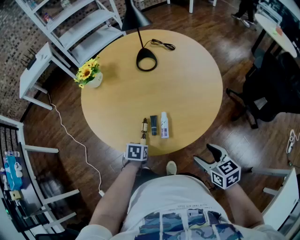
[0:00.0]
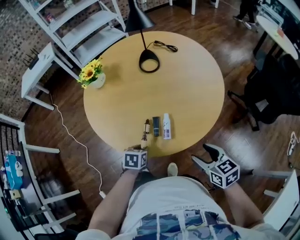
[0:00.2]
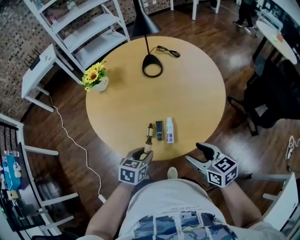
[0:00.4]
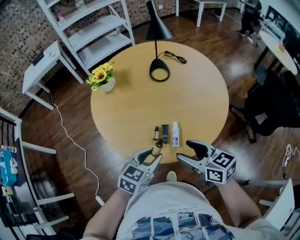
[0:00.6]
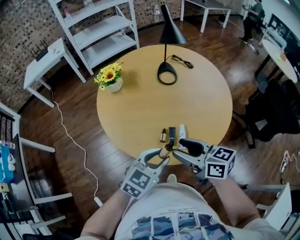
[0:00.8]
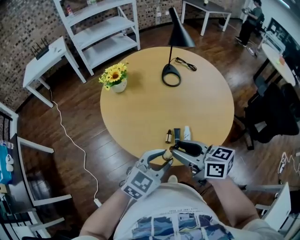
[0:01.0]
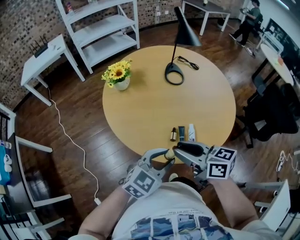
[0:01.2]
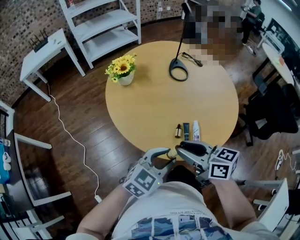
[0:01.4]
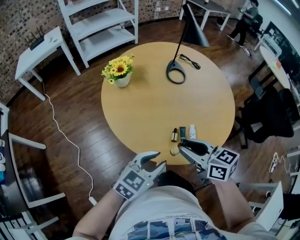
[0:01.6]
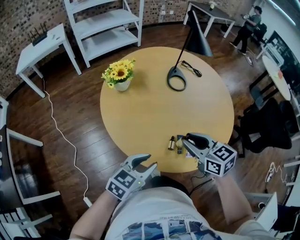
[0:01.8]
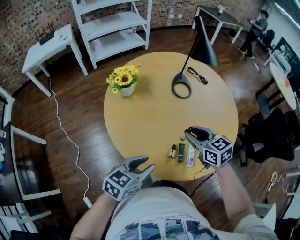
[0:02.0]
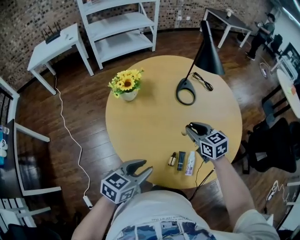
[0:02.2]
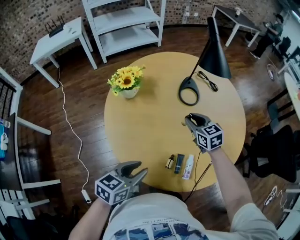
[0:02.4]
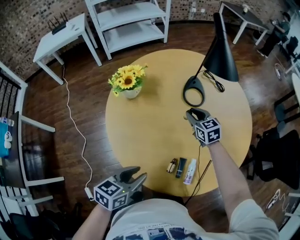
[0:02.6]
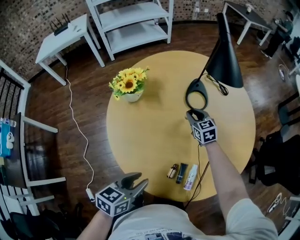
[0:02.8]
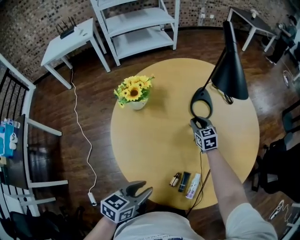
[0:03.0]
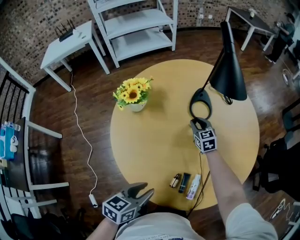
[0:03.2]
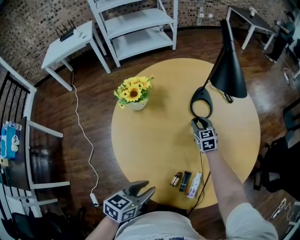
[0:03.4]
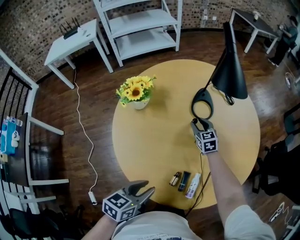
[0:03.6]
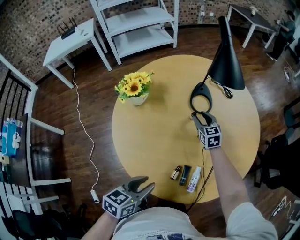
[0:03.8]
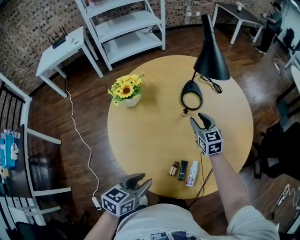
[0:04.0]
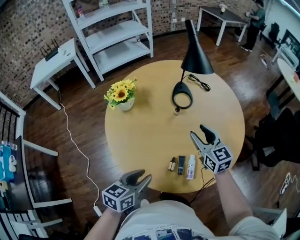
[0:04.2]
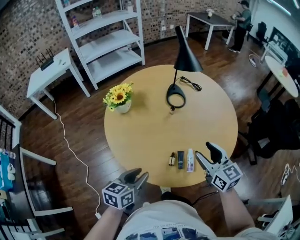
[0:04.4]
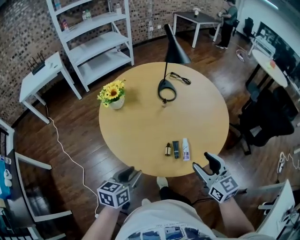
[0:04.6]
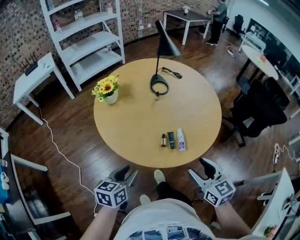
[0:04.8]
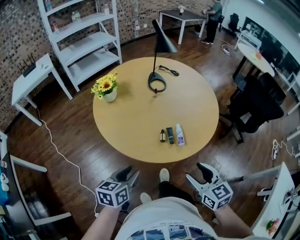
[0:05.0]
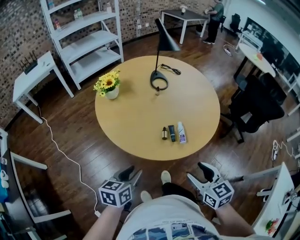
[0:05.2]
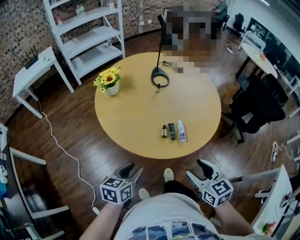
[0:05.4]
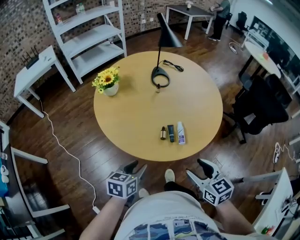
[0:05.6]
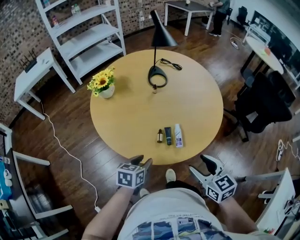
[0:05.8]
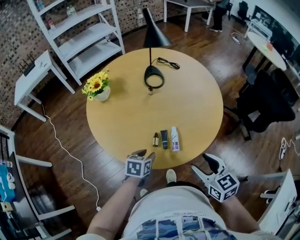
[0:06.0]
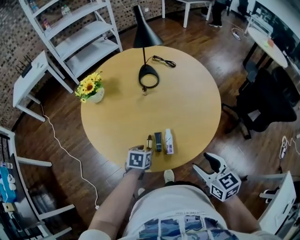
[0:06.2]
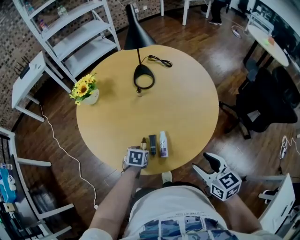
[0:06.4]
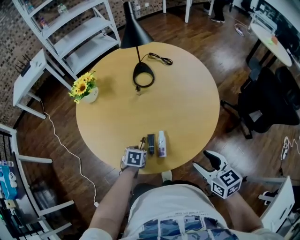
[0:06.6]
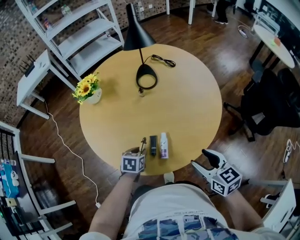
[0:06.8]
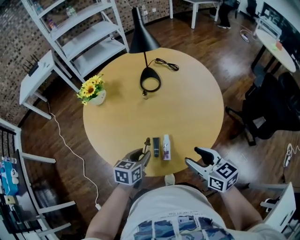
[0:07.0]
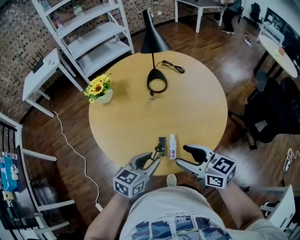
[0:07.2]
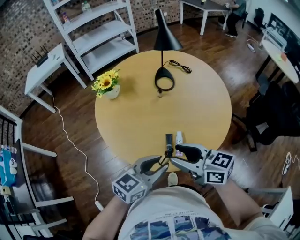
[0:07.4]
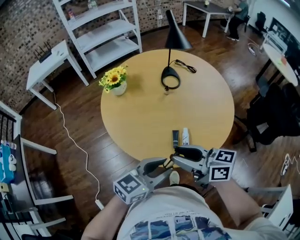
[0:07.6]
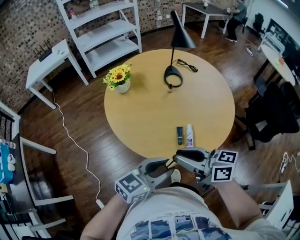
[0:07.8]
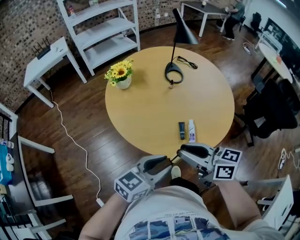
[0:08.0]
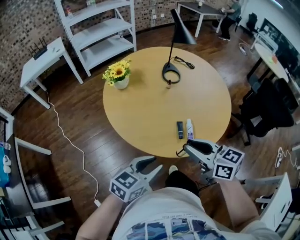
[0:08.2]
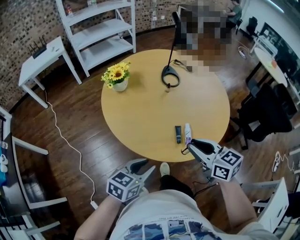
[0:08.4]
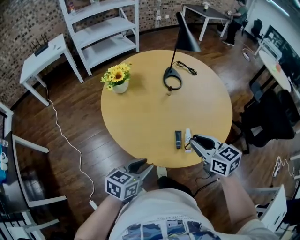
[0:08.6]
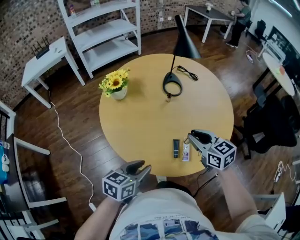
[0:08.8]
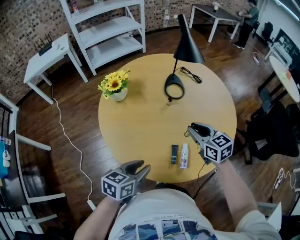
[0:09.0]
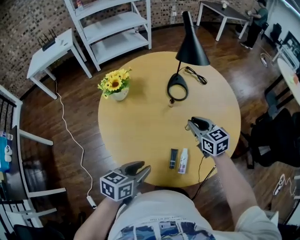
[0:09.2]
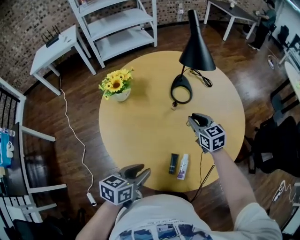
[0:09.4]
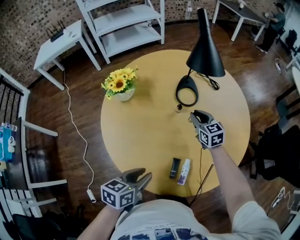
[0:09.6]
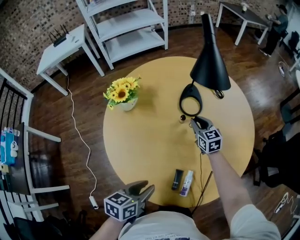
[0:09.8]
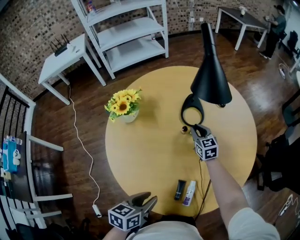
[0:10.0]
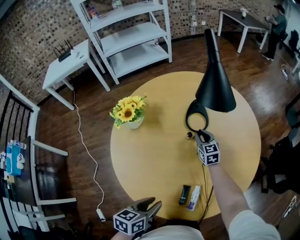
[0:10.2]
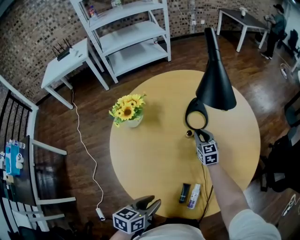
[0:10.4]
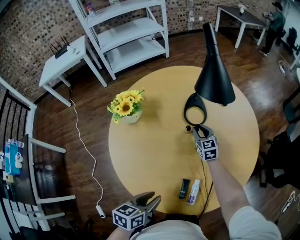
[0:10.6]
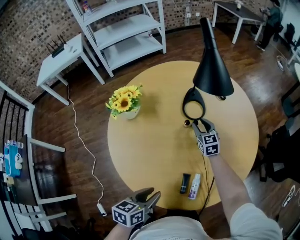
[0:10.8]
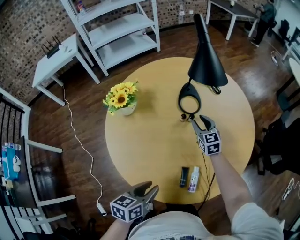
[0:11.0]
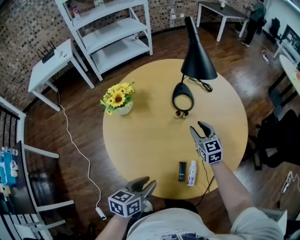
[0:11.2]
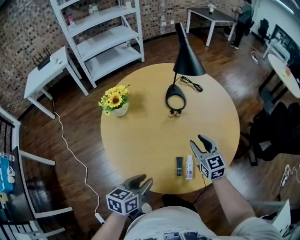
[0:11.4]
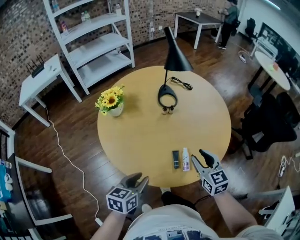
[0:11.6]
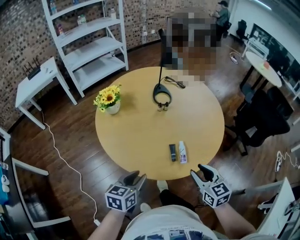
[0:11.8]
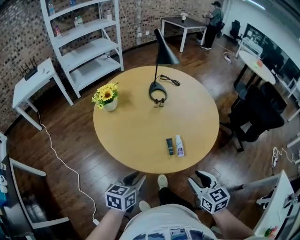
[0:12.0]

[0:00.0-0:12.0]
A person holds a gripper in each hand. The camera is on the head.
0:00.0 to 0:01.6: The right gripper goes roughly 30 cm to the left, rotates roughly 20 degrees, and closes its fingers. Meanwhile the left gripper goes roughly 25 cm upward and to the left, and angles its fingers upward, by some 40 degrees.
0:01.6 to 0:03.0: The right gripper heads forward and downward, covering about 50 cm, and swivels some 30 degrees. Meanwhile the left gripper is displaced forward and downward by roughly 15 cm, and swivels about 40 degrees.
0:03.0 to 0:04.4: The left gripper heads backward, covering some 5 cm; the right gripper is displaced backward and upward by about 40 cm, swivels roughly 20 degrees, and opens its fingers.
0:04.4 to 0:06.0: The left gripper moves downward and to the right, roughly 15 cm, travels backward and back again, some 15 cm each way, and changes its angle by about 20 degrees. The right gripper moves backward and to the right, some 15 cm.
0:06.0 to 0:07.6: The left gripper goes approximately 20 cm upward and backward, and tips its fingers upward by about 40 degrees. Meanwhile the right gripper is displaced to the left and upward by about 15 cm, rotates roughly 50 degrees, and closes.
0:07.6 to 0:09.0: The right gripper goes roughly 25 cm forward, and swivels some 40 degrees. Meanwhile the left gripper moves forward, to the left and downward, roughly 15 cm, and rotates some 30 degrees.
0:09.0 to 0:10.4: The left gripper moves forward, roughly 5 cm, while the right gripper heads forward and downward, covering some 30 cm.
0:10.4 to 0:12.0: The left gripper moves backward, roughly 20 cm, and turns by about 20 degrees, while the right gripper is displaced backward by about 60 cm, and opens.

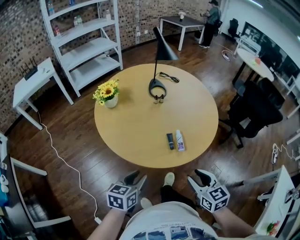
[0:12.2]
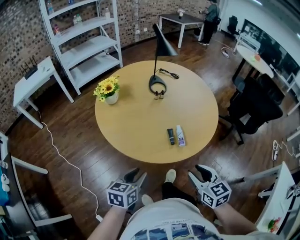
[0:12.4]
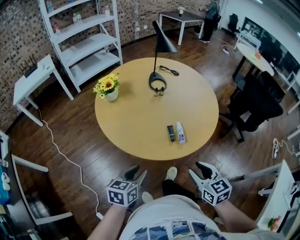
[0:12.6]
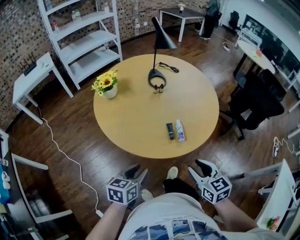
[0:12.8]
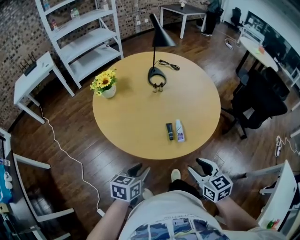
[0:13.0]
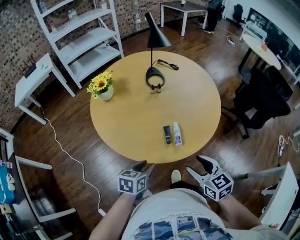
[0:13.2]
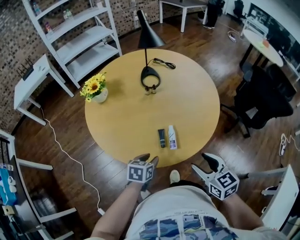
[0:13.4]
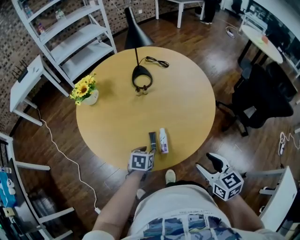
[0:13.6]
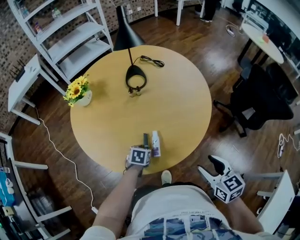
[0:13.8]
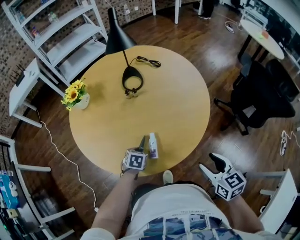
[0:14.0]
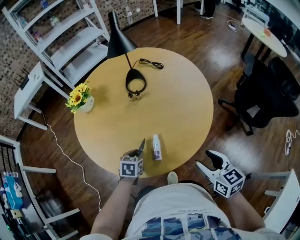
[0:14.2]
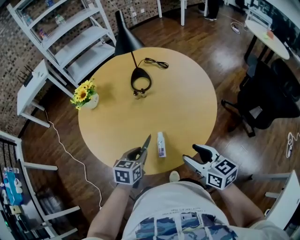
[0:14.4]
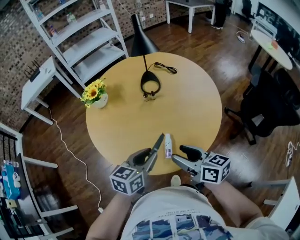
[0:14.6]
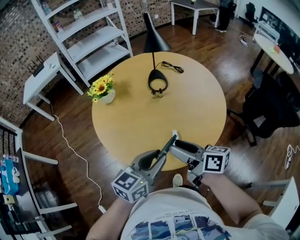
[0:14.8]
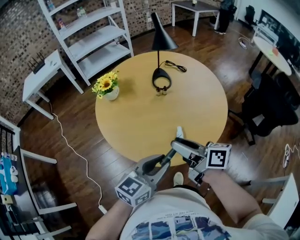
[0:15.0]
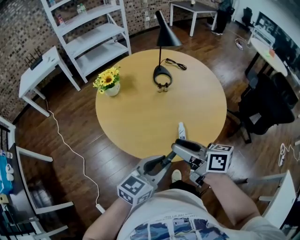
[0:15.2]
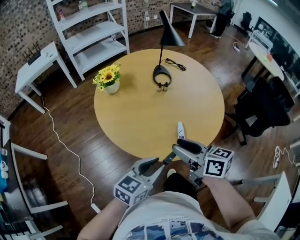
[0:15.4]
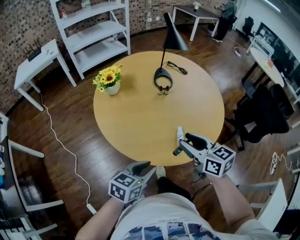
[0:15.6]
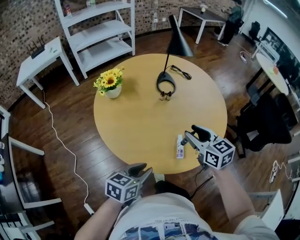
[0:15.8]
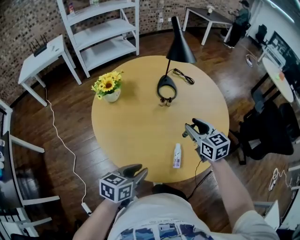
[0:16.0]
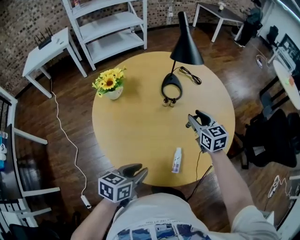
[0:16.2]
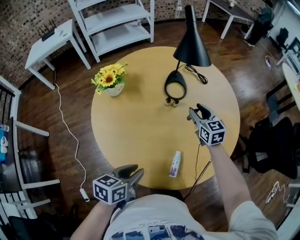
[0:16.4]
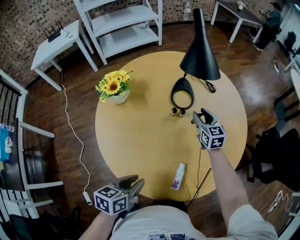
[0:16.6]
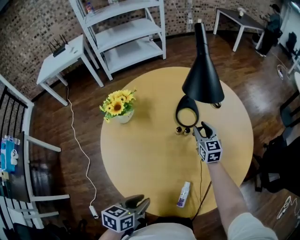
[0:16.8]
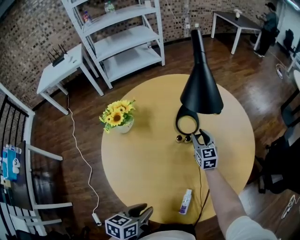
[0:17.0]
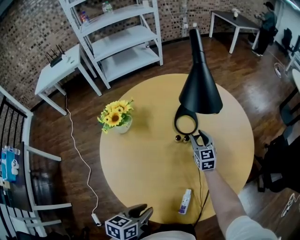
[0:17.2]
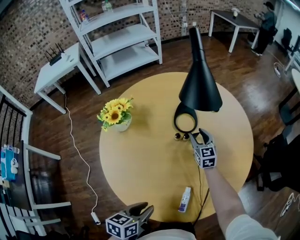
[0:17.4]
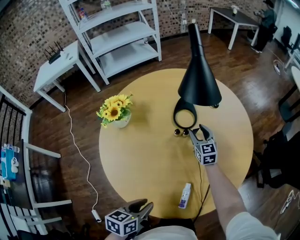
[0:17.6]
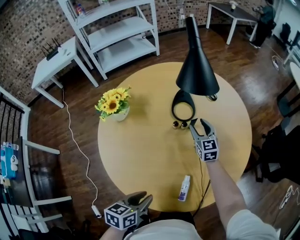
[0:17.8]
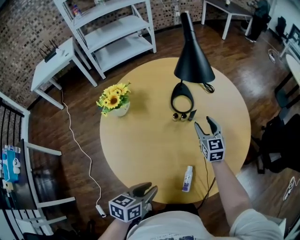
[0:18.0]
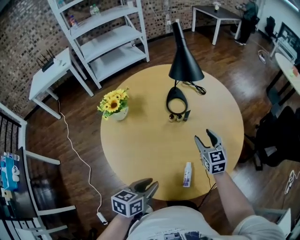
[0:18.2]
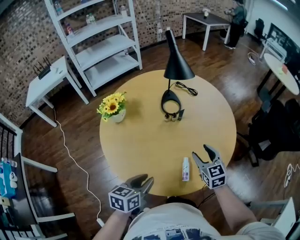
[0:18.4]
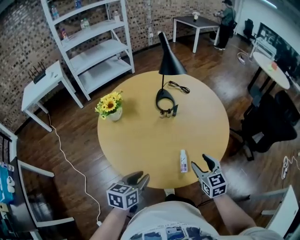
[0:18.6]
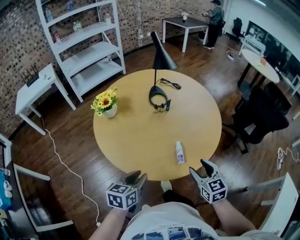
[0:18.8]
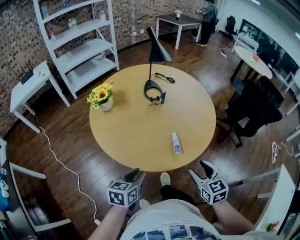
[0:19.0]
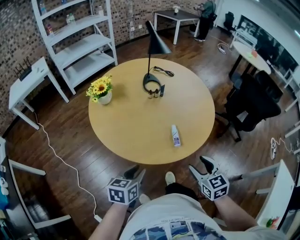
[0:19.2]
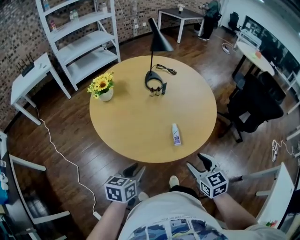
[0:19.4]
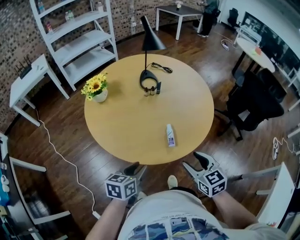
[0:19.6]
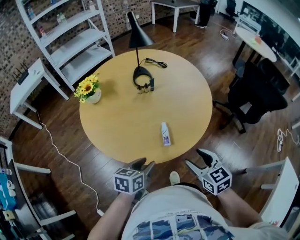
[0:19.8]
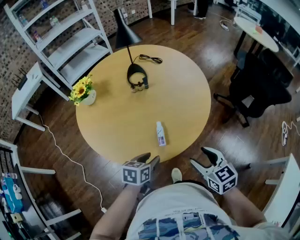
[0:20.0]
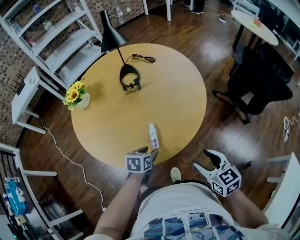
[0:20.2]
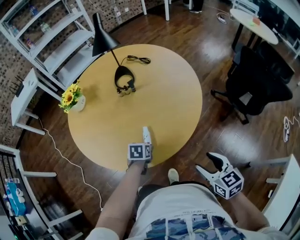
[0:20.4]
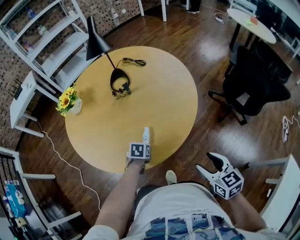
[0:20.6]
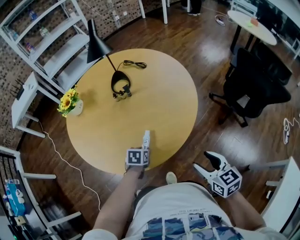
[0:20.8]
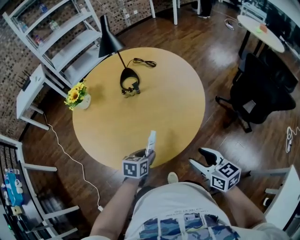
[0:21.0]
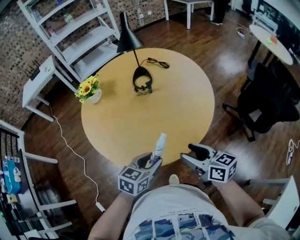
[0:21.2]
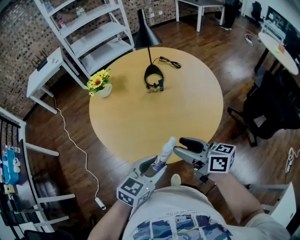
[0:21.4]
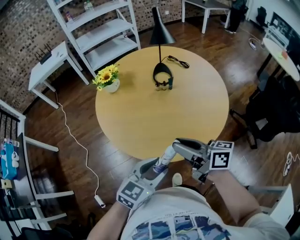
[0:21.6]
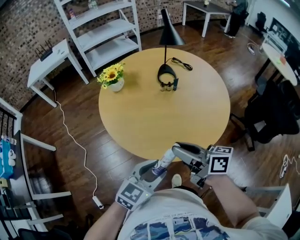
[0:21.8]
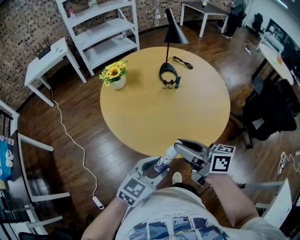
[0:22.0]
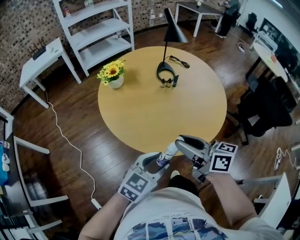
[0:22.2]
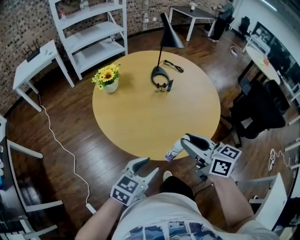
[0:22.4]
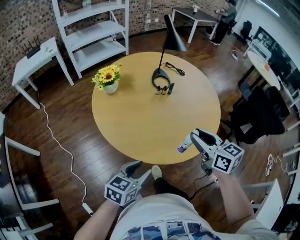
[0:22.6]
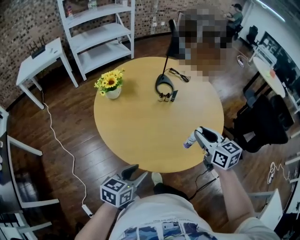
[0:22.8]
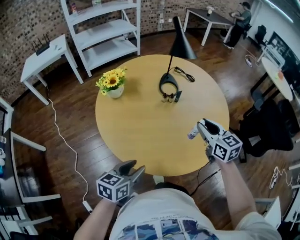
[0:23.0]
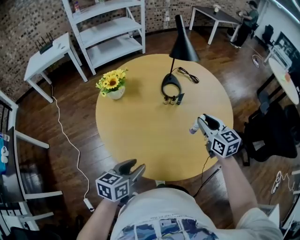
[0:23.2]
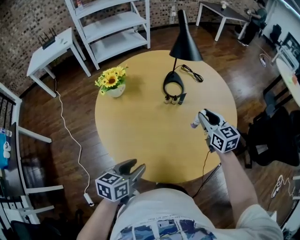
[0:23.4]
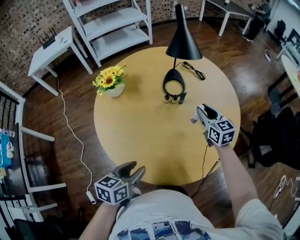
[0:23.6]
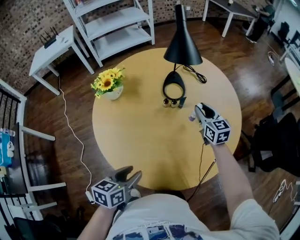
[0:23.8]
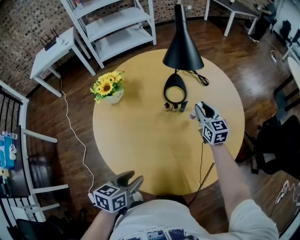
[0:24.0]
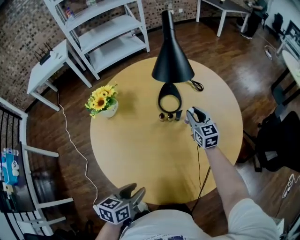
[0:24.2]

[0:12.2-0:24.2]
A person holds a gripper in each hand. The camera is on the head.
0:12.2 to 0:13.8: The right gripper moves to the right and forward, about 30 cm. Meanwhile the left gripper heads forward, downward and to the right, covering roughly 35 cm, and angles its fingers downward, by about 30 degrees.
0:13.8 to 0:15.2: The right gripper heads to the left, covering roughly 30 cm, and rotates roughly 40 degrees; the left gripper is displaced upward and backward by about 35 cm, angles its fingers upward, by roughly 50 degrees, and closes.
0:15.2 to 0:16.6: The right gripper moves forward, approximately 50 cm, and rolls counterclockwise, seen from behind, by about 40 degrees. Meanwhile the left gripper goes roughly 20 cm forward and downward, and swivels some 40 degrees.
0:16.6 to 0:18.2: The right gripper moves backward, some 15 cm.
0:18.2 to 0:19.8: The right gripper heads backward, covering approximately 35 cm, while the left gripper shifts some 15 cm backward and to the right.
0:19.8 to 0:21.2: The two grippers go about 15 cm to the right and forward. The right gripper turns by approximately 30 degrees, while the left gripper moves some 15 cm downward and comes back.
0:21.2 to 0:22.6: The right gripper goes about 20 cm to the left and upward, and closes up; the left gripper heads to the left, covering approximately 25 cm.
0:22.6 to 0:24.2: The right gripper goes some 50 cm forward and downward. The left gripper moves forward, about 20 cm, and turns by some 30 degrees.
